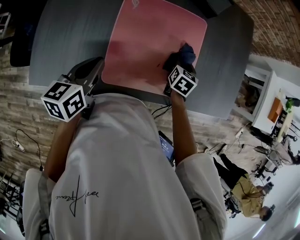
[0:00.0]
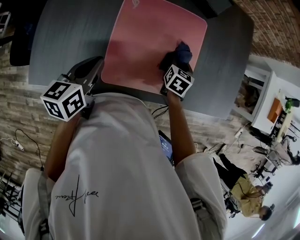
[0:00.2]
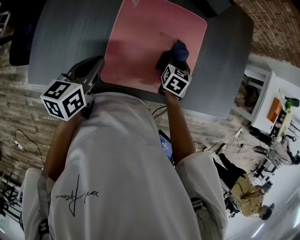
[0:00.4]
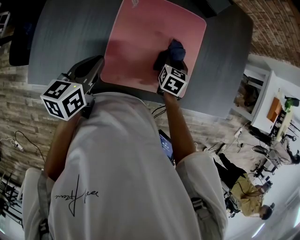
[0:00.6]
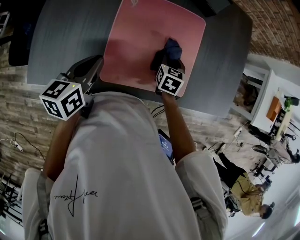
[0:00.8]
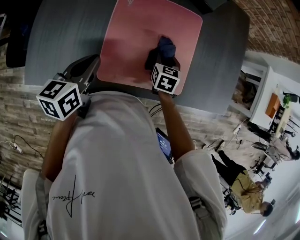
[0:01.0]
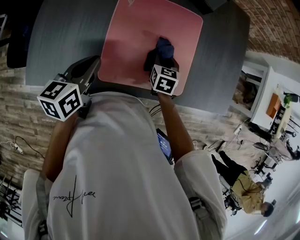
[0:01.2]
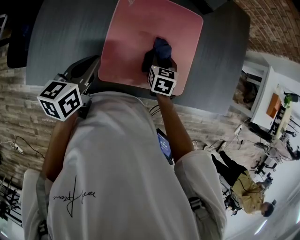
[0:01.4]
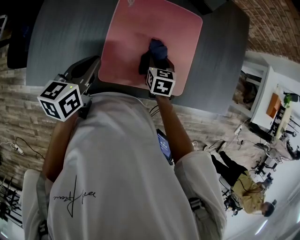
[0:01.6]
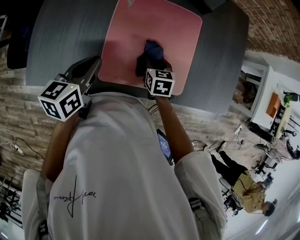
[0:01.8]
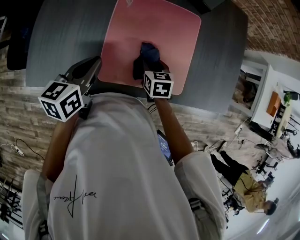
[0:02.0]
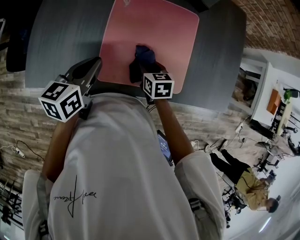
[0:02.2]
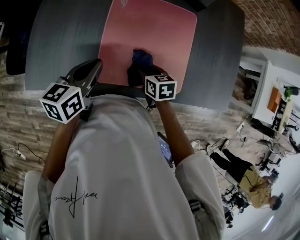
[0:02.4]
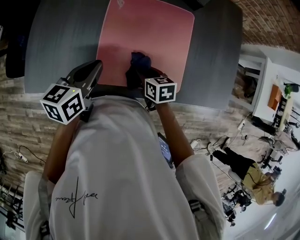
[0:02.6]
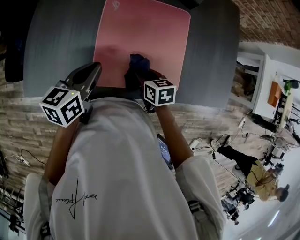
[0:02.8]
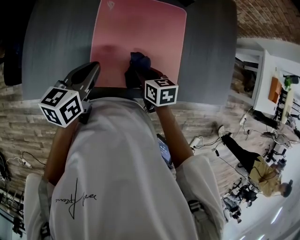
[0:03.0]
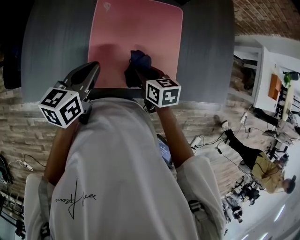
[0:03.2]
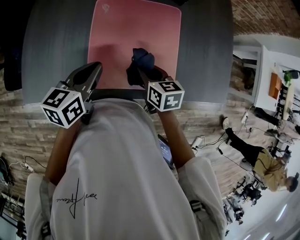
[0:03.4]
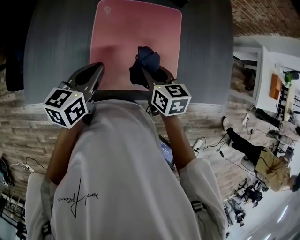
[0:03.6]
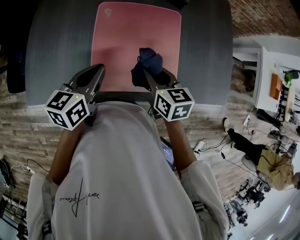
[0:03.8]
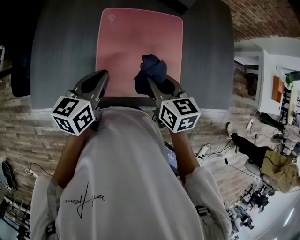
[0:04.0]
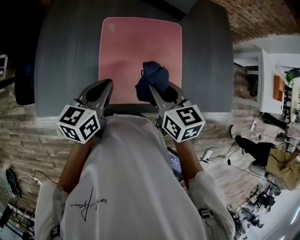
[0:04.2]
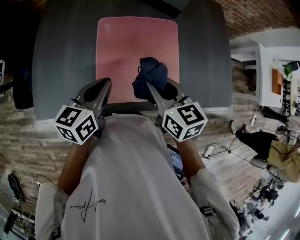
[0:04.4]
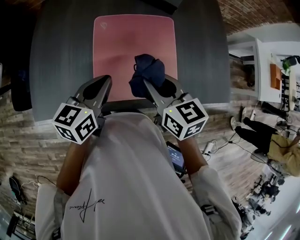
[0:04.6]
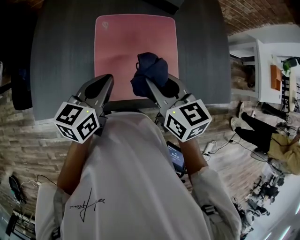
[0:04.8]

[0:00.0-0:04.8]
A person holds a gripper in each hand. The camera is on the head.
0:00.0 to 0:01.6: The right gripper moves to the left and backward, some 10 cm.
0:01.6 to 0:03.2: The left gripper is displaced to the right by some 5 cm; the right gripper goes some 5 cm backward, and swivels some 20 degrees.
0:03.2 to 0:04.8: The right gripper shifts some 20 cm upward, and changes its angle by approximately 20 degrees. The left gripper moves roughly 5 cm.

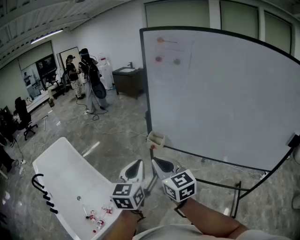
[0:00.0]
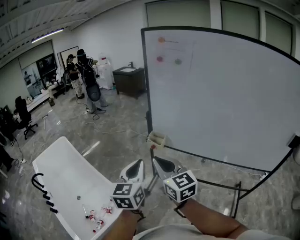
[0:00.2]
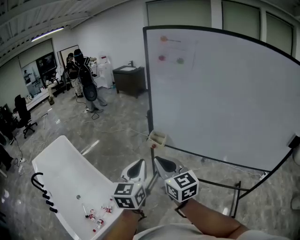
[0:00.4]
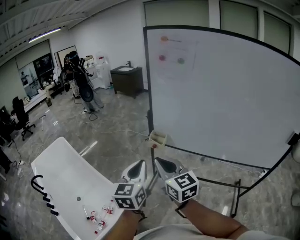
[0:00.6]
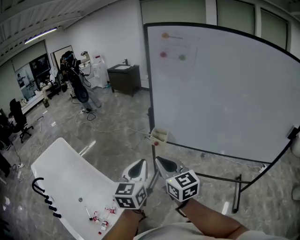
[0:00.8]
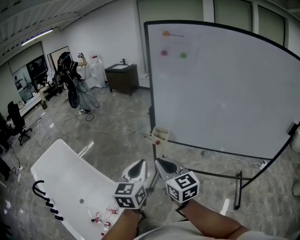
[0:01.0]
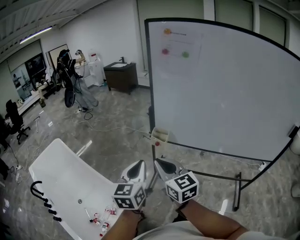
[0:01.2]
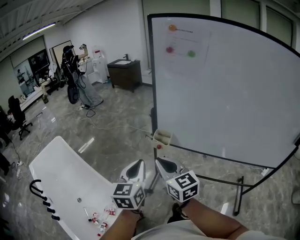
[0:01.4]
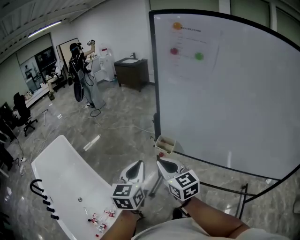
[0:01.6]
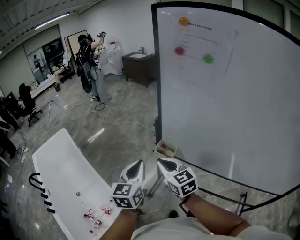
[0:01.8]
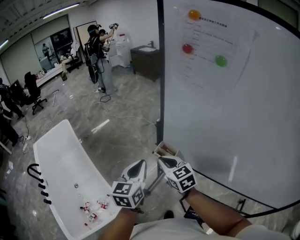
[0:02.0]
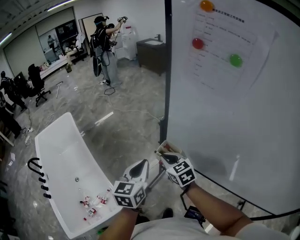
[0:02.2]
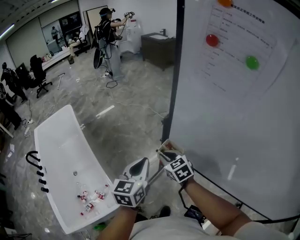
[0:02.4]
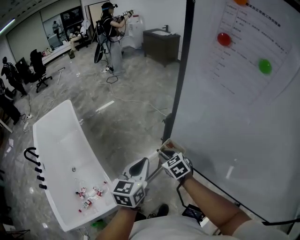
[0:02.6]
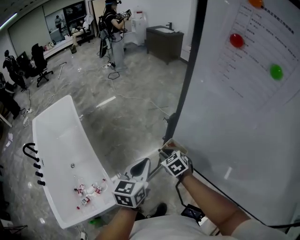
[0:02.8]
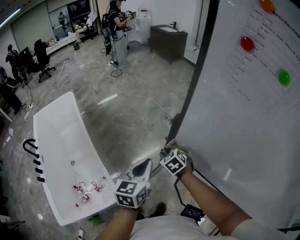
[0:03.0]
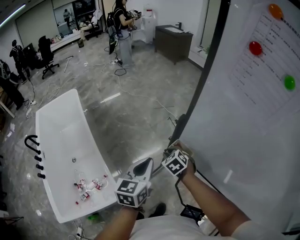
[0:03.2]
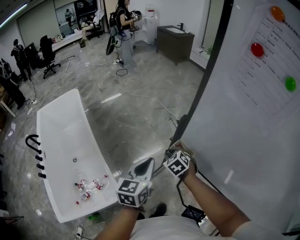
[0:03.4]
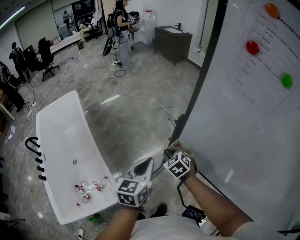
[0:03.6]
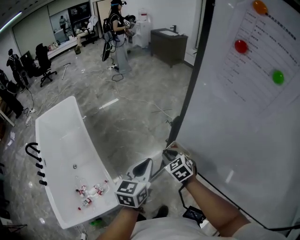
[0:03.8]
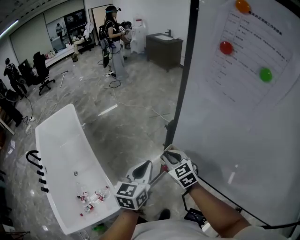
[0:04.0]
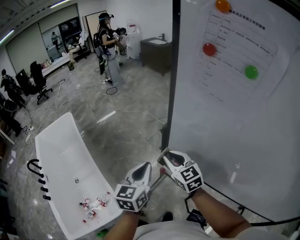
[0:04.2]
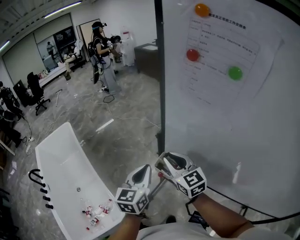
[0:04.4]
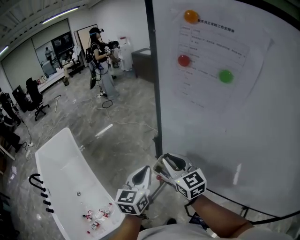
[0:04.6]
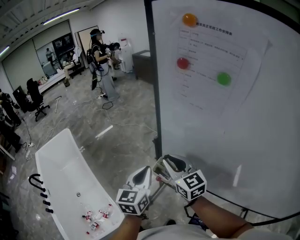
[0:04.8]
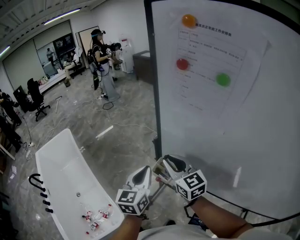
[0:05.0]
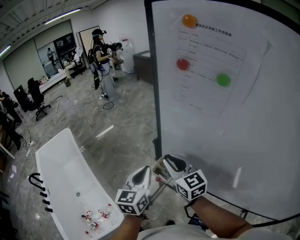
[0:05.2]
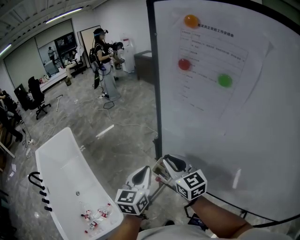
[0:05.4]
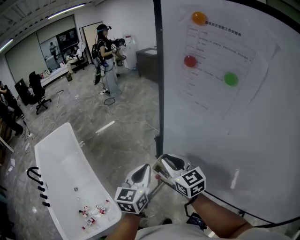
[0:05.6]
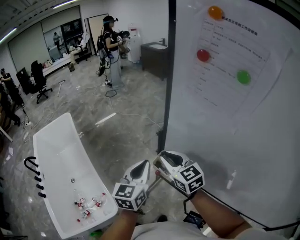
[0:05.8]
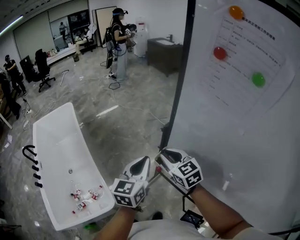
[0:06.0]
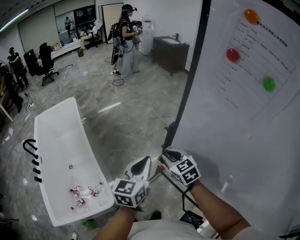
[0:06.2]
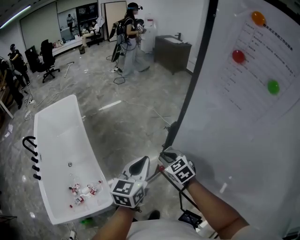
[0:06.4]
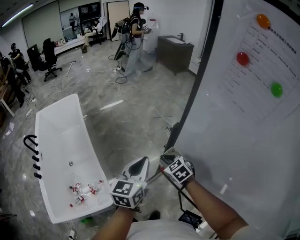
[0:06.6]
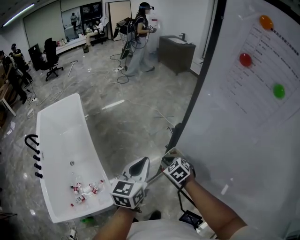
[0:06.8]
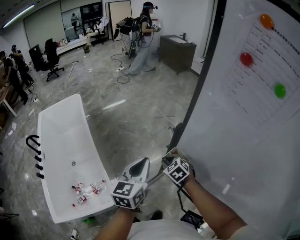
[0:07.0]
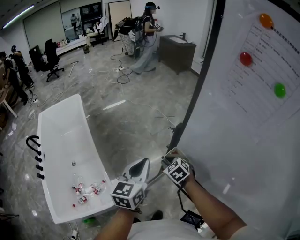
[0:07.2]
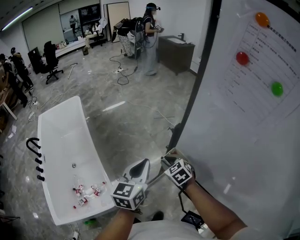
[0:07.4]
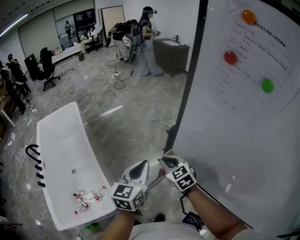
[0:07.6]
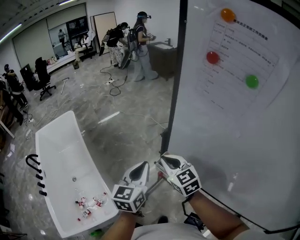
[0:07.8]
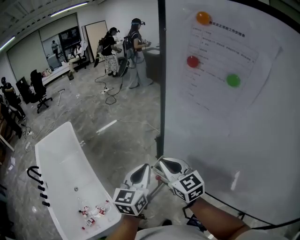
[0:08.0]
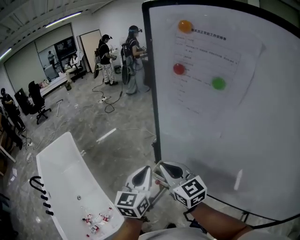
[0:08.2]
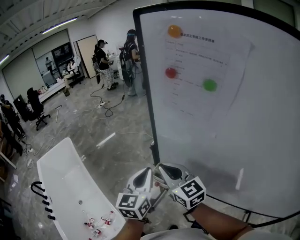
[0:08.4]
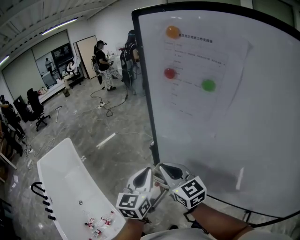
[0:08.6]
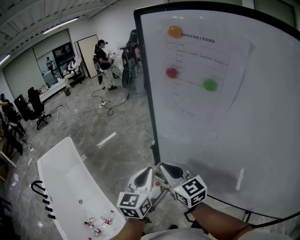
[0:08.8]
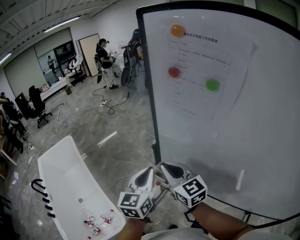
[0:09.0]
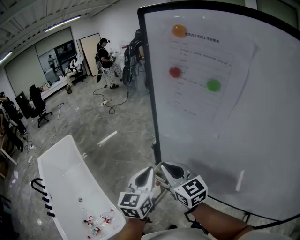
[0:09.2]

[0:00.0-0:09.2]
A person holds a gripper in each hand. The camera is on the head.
0:00.0 to 0:01.6: The left gripper shifts approximately 15 cm forward; the right gripper travels forward and downward by roughly 15 cm.
0:01.6 to 0:03.0: The right gripper heads downward and forward, covering roughly 35 cm, points its fingers about 40 degrees further downward, and opens up. Meanwhile the left gripper shifts approximately 15 cm forward and downward.
0:03.0 to 0:04.6: The right gripper heads upward, covering some 25 cm, and points its fingers some 50 degrees further upward; the left gripper shifts roughly 10 cm upward and to the right.
0:04.6 to 0:06.2: The right gripper travels downward by approximately 10 cm, and changes its angle by approximately 30 degrees.
0:06.2 to 0:07.6: The right gripper reaches roughly 10 cm downward, then returns.
0:07.6 to 0:09.2: The left gripper shifts approximately 10 cm to the right and upward; the right gripper moves upward, approximately 15 cm, and swivels about 30 degrees.

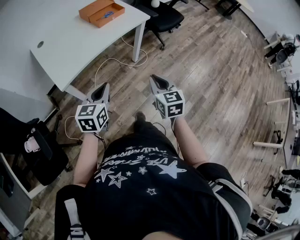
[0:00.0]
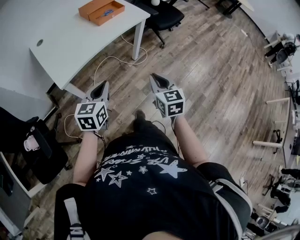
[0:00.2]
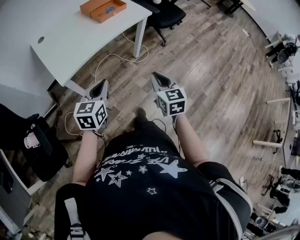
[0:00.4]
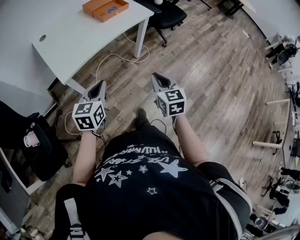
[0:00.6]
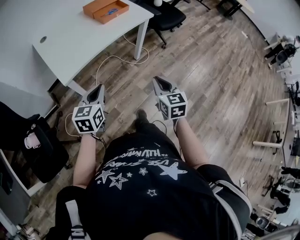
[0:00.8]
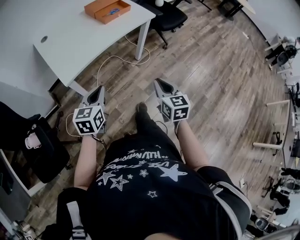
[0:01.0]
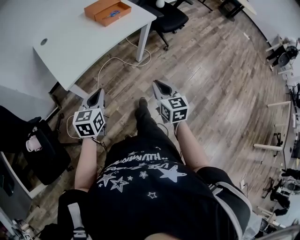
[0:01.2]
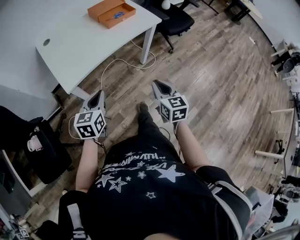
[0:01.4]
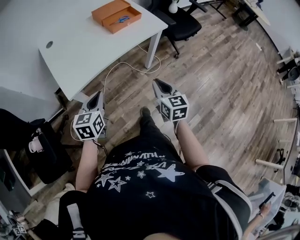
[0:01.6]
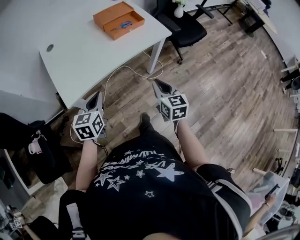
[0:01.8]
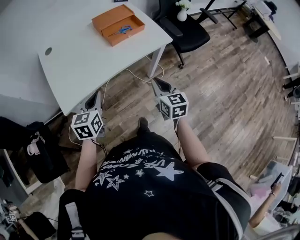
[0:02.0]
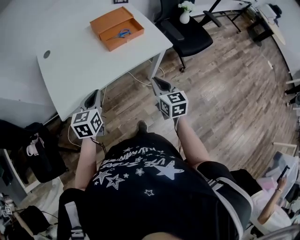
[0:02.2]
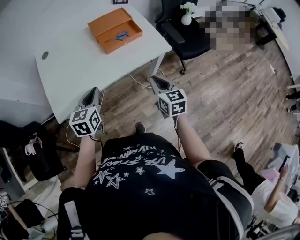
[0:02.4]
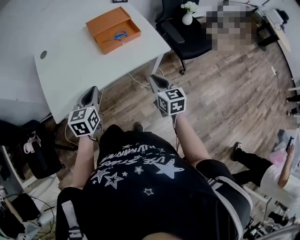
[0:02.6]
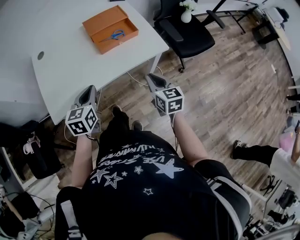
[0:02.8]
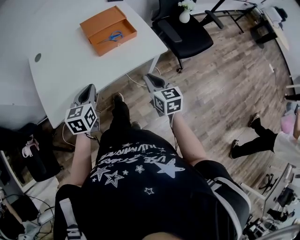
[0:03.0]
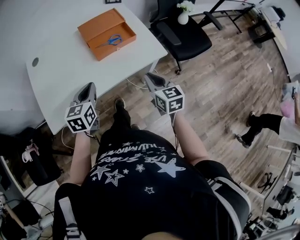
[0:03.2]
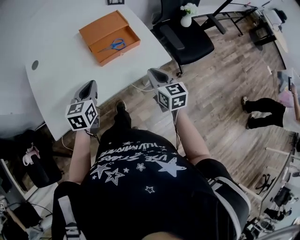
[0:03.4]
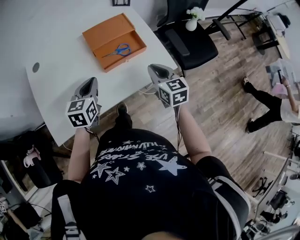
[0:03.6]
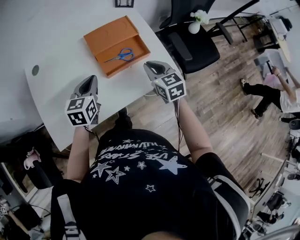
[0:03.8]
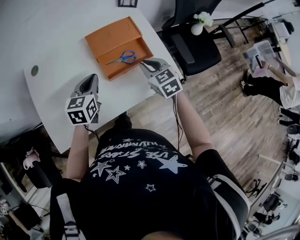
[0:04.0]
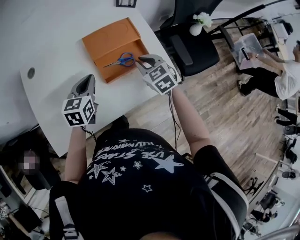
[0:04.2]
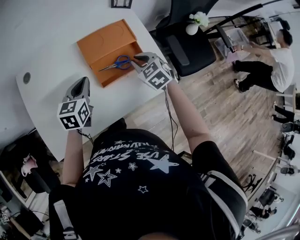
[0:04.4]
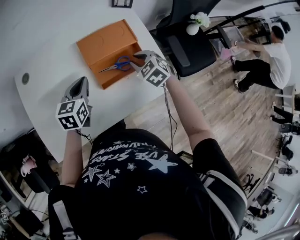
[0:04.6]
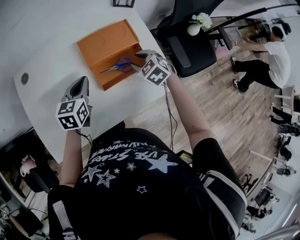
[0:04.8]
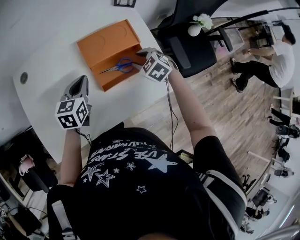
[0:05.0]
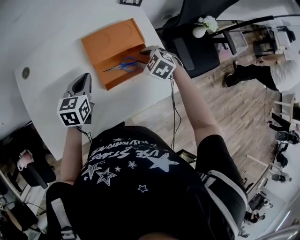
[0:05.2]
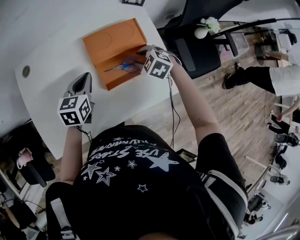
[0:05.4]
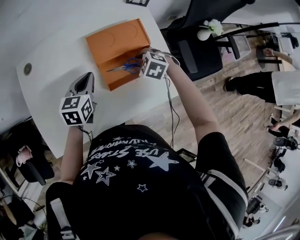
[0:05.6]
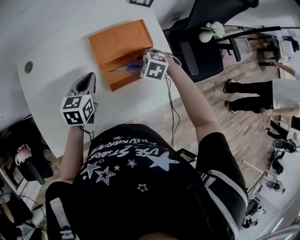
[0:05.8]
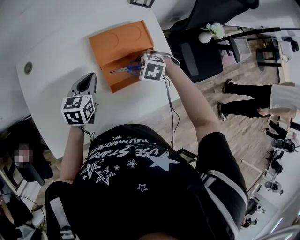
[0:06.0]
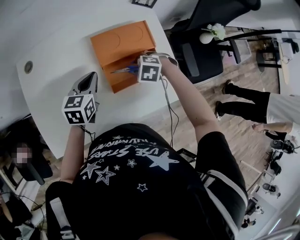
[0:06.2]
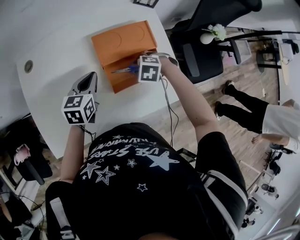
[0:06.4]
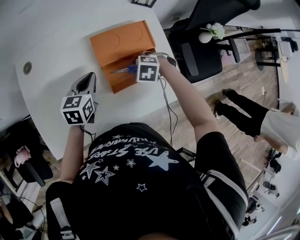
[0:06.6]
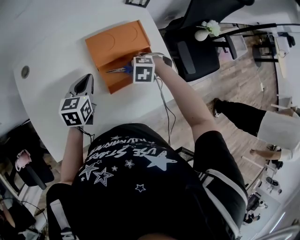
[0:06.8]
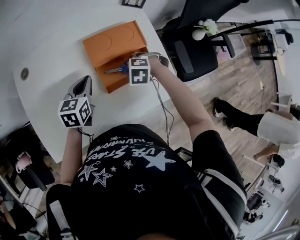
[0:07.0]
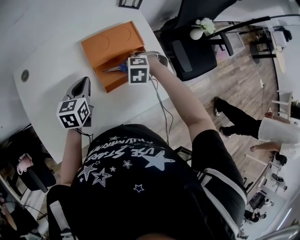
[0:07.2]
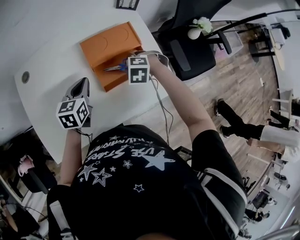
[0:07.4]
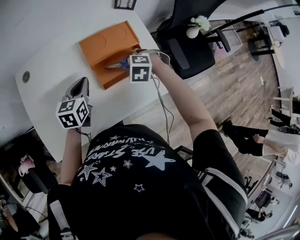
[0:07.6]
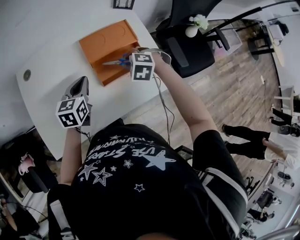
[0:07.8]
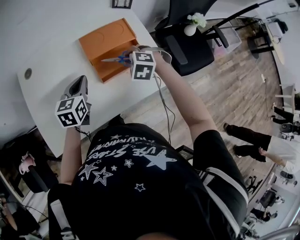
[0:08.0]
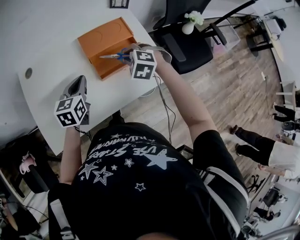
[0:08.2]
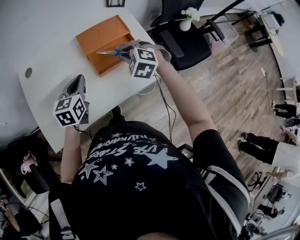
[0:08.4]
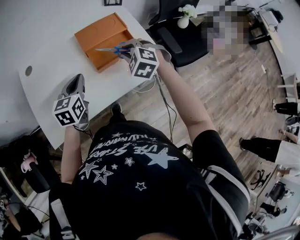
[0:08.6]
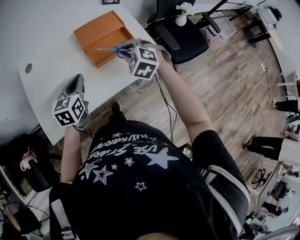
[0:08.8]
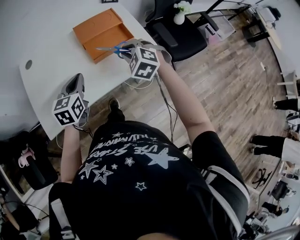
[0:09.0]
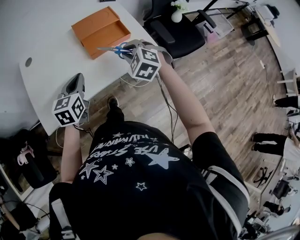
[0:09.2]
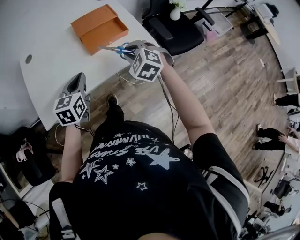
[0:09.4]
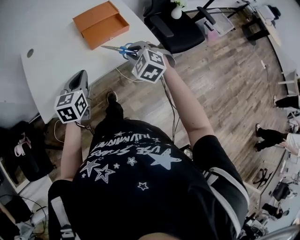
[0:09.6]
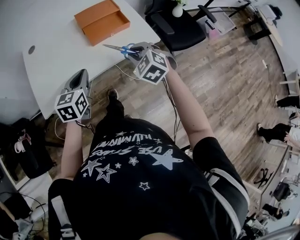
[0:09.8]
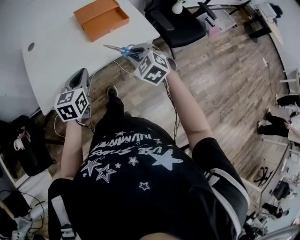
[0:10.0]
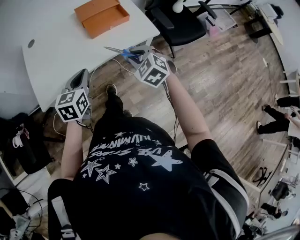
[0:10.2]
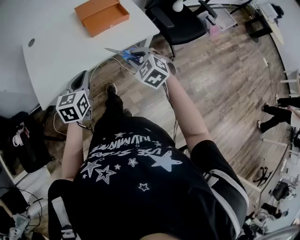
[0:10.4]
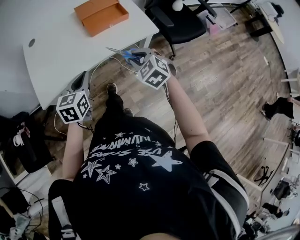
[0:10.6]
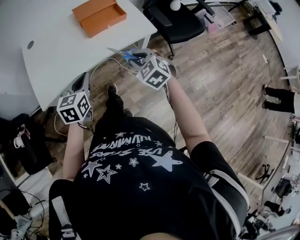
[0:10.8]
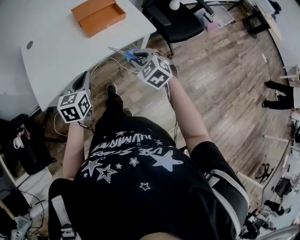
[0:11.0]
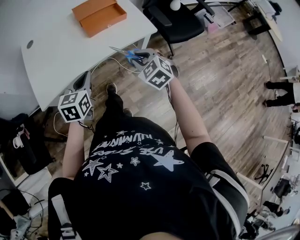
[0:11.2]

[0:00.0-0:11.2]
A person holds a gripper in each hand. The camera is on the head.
0:00.0 to 0:01.6: The left gripper travels forward and to the left by some 10 cm. Meanwhile the right gripper moves forward, approximately 10 cm.
0:01.6 to 0:03.2: The grippers both shift forward and to the right by some 35 cm.
0:03.2 to 0:04.8: Both grippers move forward, approximately 35 cm. The right gripper rotates roughly 50 degrees, and opens up.
0:04.8 to 0:06.4: The right gripper shifts approximately 5 cm downward, and turns by roughly 40 degrees.
0:06.4 to 0:08.0: The left gripper moves about 10 cm; the right gripper moves upward, approximately 10 cm, and changes its angle by some 20 degrees.
0:08.0 to 0:09.6: Both grippers move backward, roughly 30 cm. The right gripper swivels approximately 20 degrees.
0:09.6 to 0:11.2: Both grippers travel together backward, approximately 10 cm.
